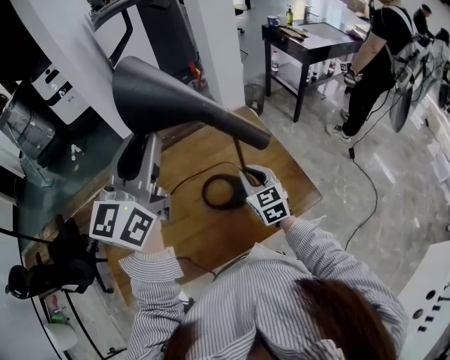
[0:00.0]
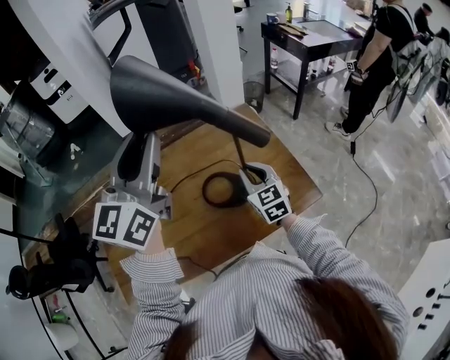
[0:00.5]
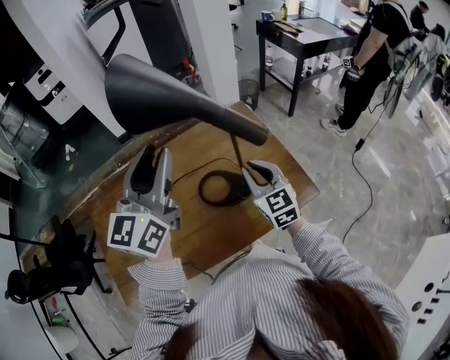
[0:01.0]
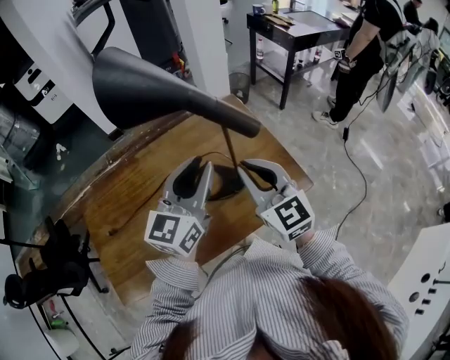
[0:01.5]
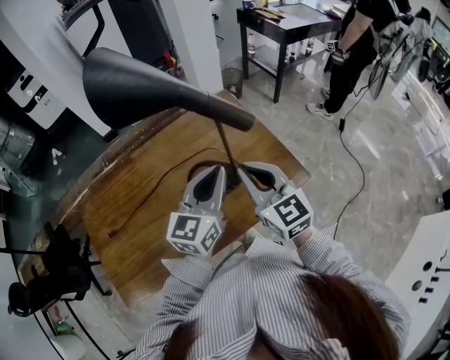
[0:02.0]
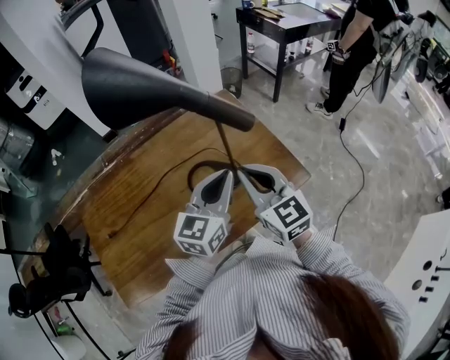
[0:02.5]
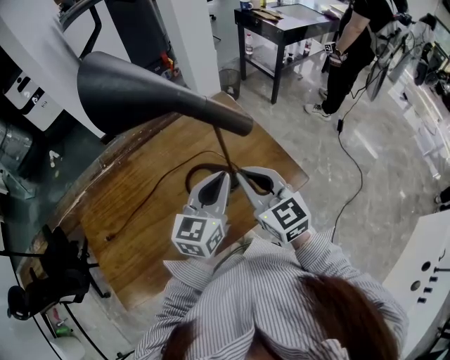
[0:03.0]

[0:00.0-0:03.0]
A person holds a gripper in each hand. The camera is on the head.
0:00.0 to 0:01.5: The right gripper travels upward and backward by about 15 cm; the left gripper shifts roughly 15 cm downward and to the right.
0:01.5 to 0:03.0: The left gripper heads downward and to the right, covering about 10 cm.

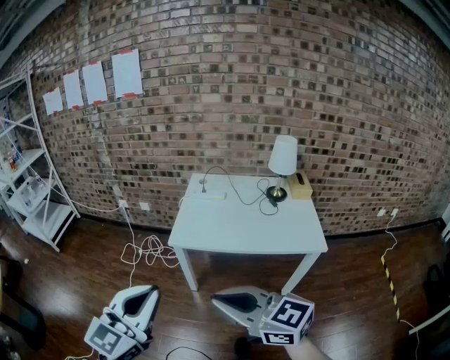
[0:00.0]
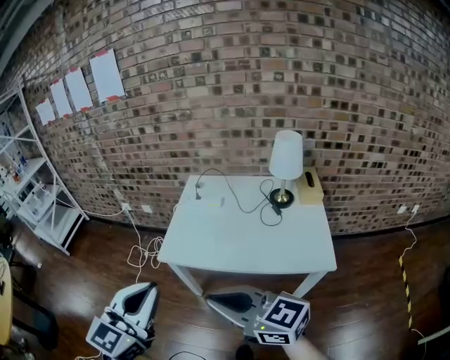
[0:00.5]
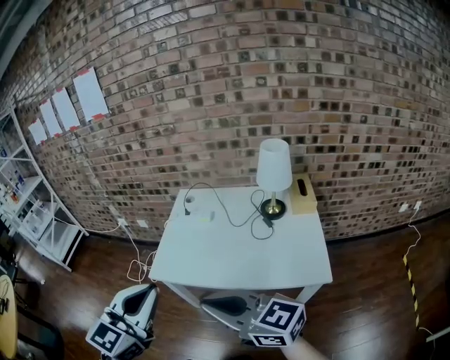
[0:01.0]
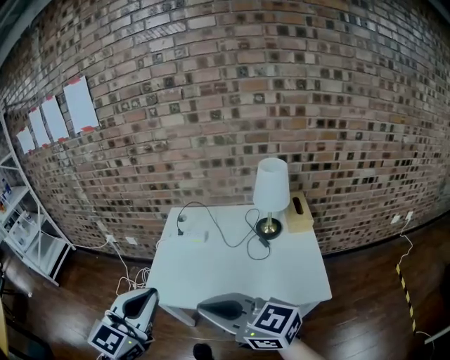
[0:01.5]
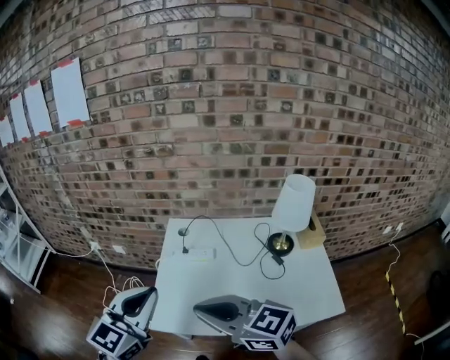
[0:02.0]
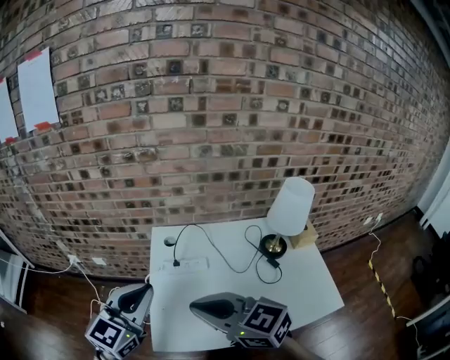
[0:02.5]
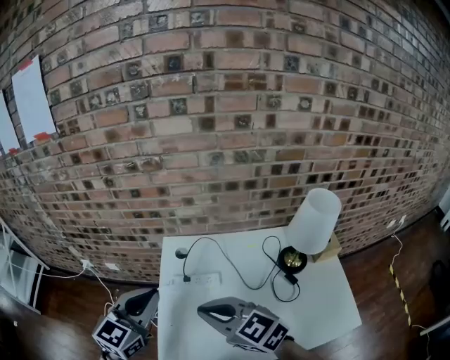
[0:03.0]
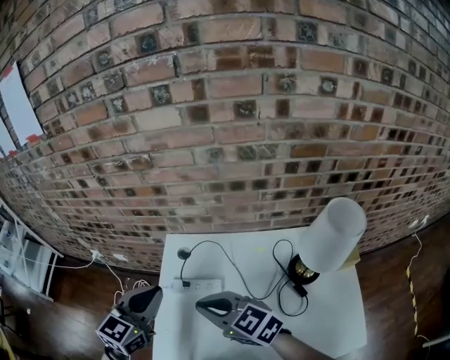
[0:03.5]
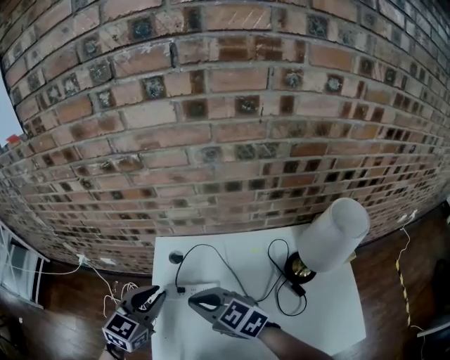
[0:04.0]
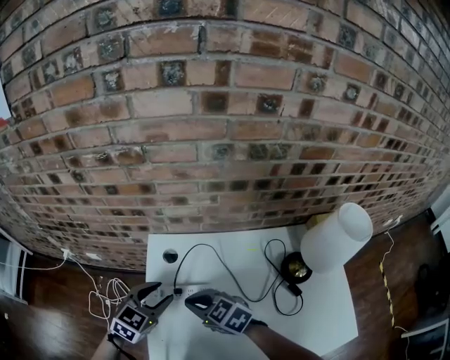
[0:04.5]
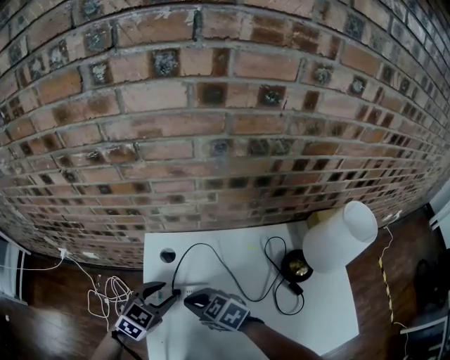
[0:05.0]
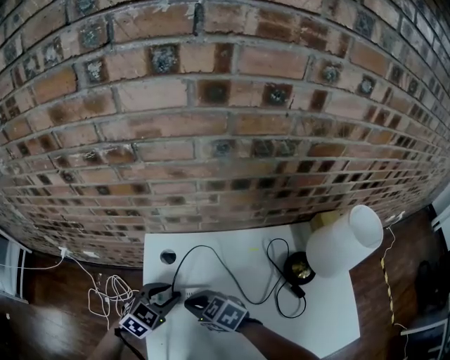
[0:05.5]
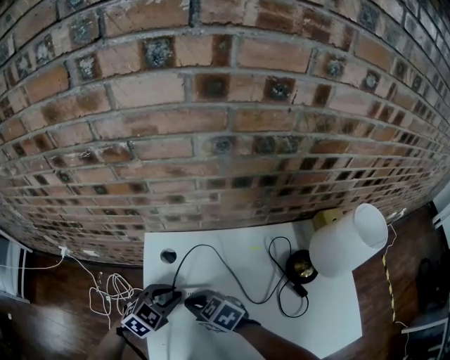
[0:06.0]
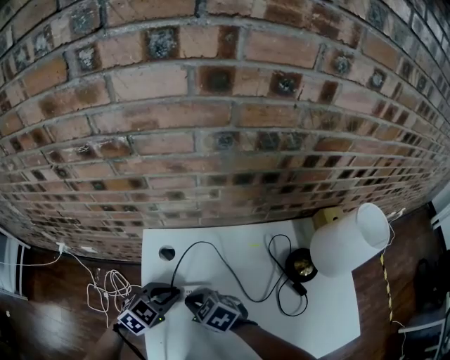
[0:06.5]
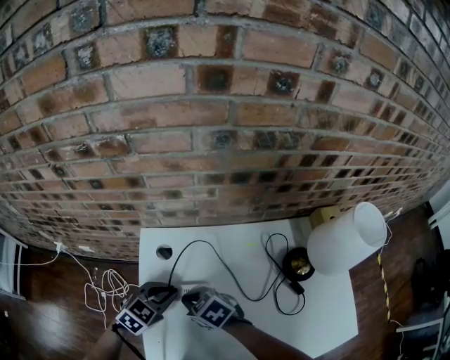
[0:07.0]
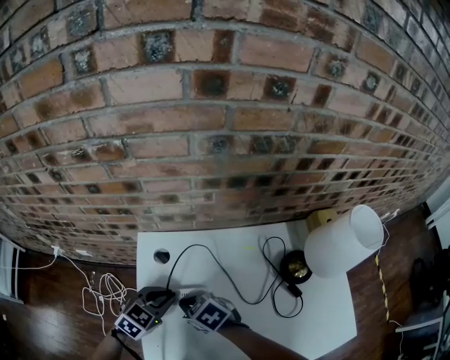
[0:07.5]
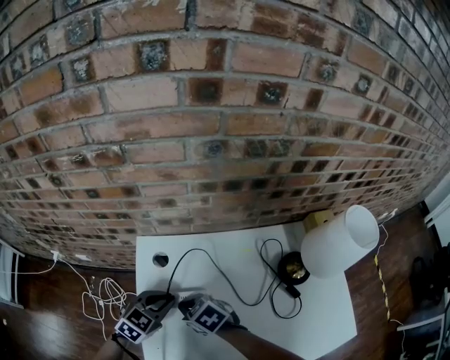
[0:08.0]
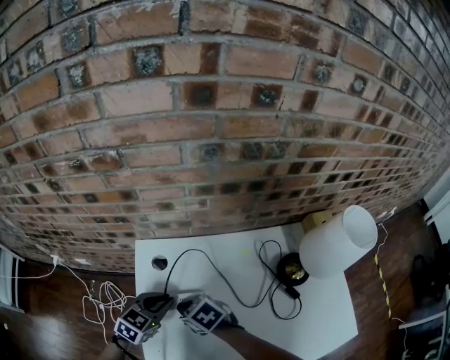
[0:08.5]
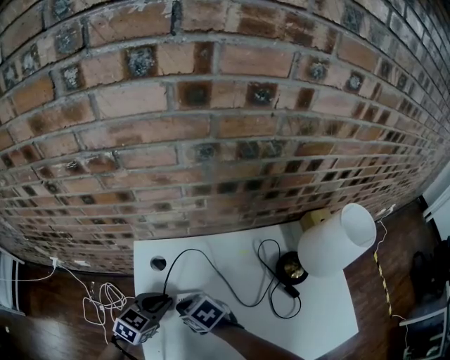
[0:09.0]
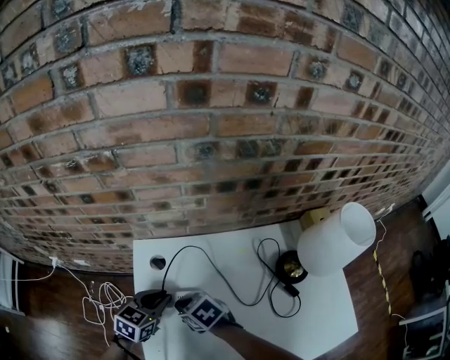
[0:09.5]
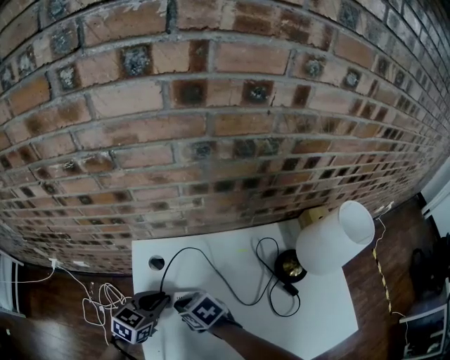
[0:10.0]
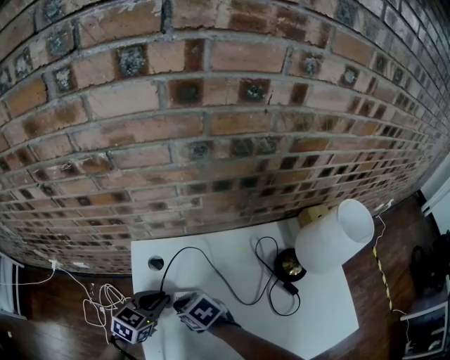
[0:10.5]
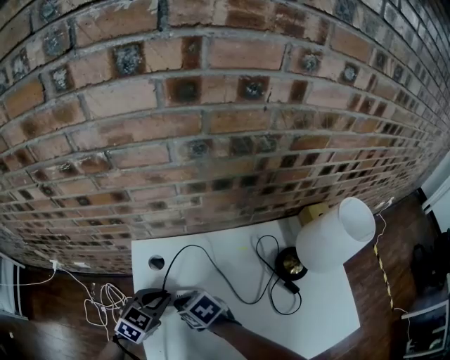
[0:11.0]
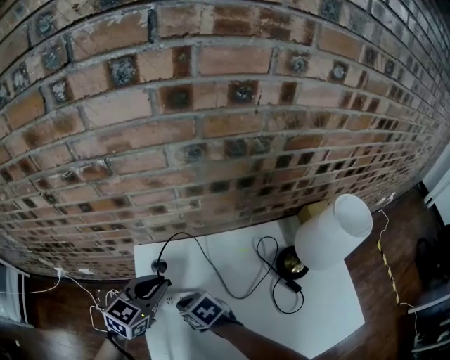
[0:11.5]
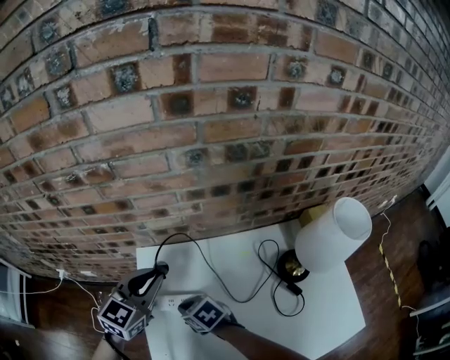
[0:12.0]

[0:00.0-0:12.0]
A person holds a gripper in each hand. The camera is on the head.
0:00.0 to 0:02.0: The right gripper travels forward by some 35 cm. Meanwhile the left gripper heads forward and to the right, covering about 40 cm.
0:02.0 to 0:04.0: Both grippers move forward and downward, roughly 30 cm. The left gripper turns by approximately 20 degrees.
0:04.0 to 0:06.0: Both grippers travel together downward, approximately 15 cm. The right gripper changes its angle by roughly 20 degrees, while the left gripper changes its angle by approximately 30 degrees.
0:06.0 to 0:08.0: There are only small adjustments of the grippers.
0:08.0 to 0:10.0: The grippers make only small movements.
0:10.0 to 0:12.0: The left gripper shifts about 15 cm upward, and rotates roughly 20 degrees.

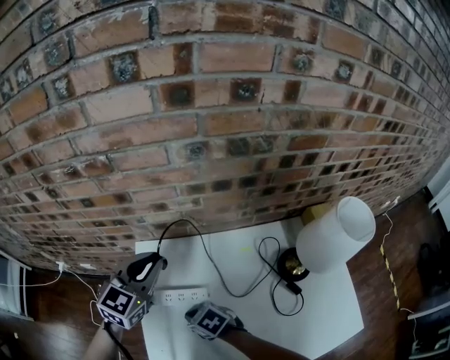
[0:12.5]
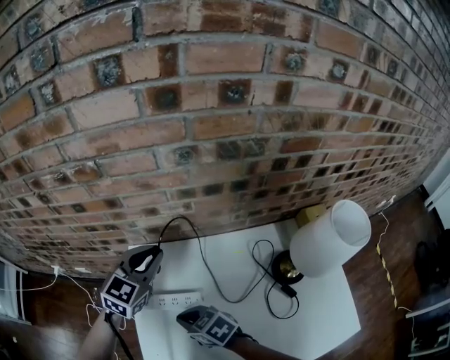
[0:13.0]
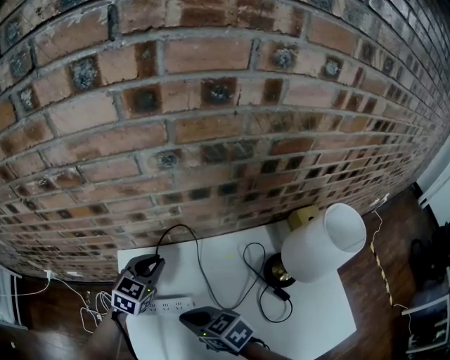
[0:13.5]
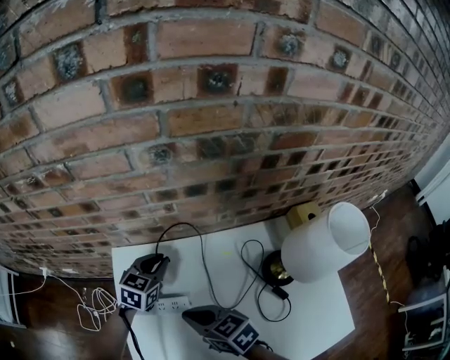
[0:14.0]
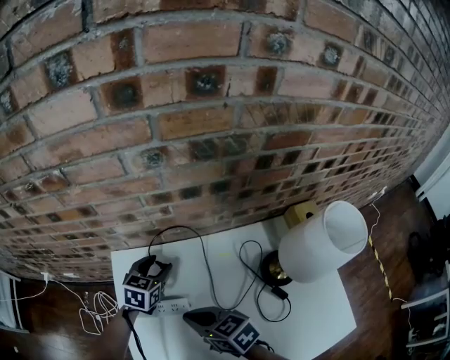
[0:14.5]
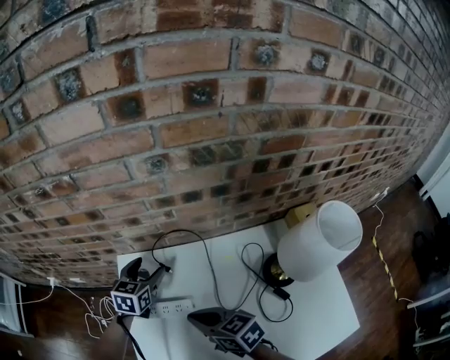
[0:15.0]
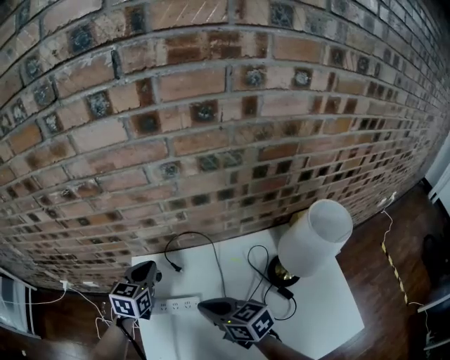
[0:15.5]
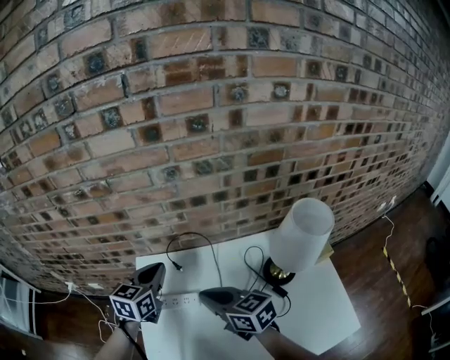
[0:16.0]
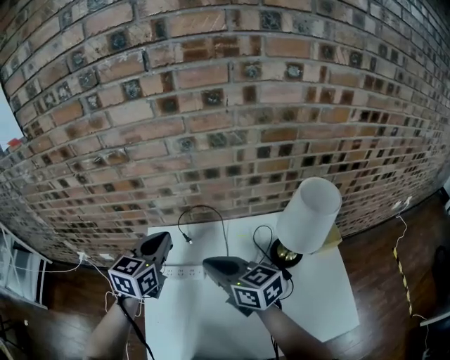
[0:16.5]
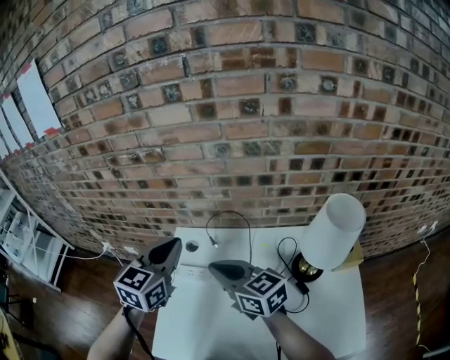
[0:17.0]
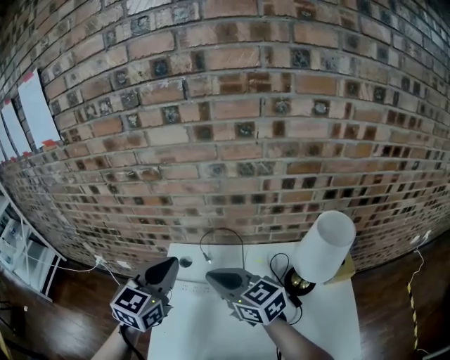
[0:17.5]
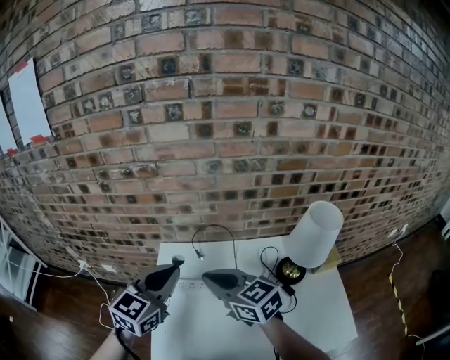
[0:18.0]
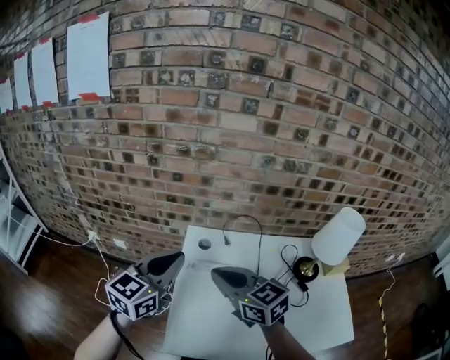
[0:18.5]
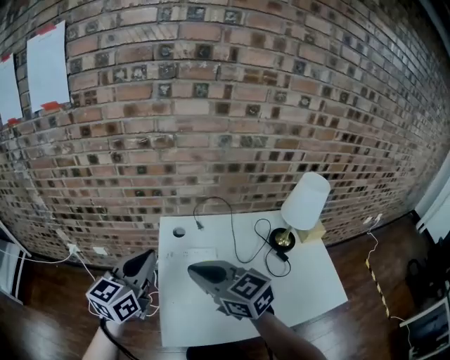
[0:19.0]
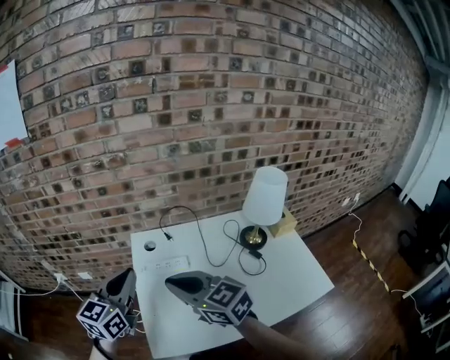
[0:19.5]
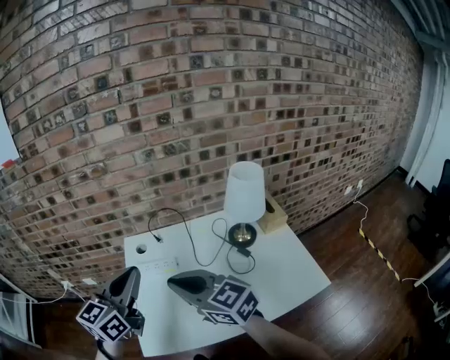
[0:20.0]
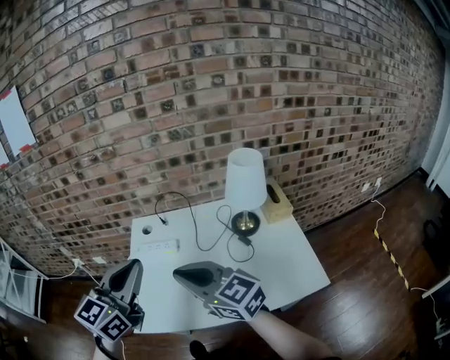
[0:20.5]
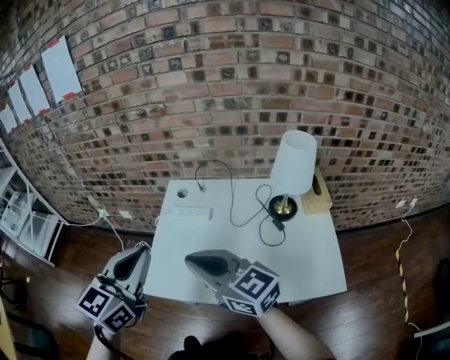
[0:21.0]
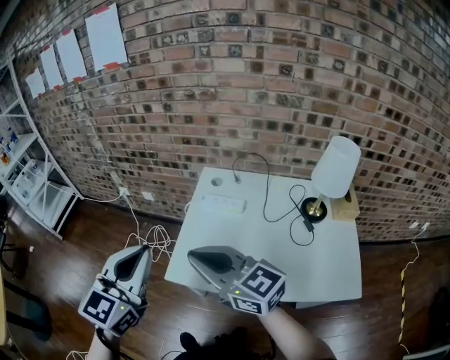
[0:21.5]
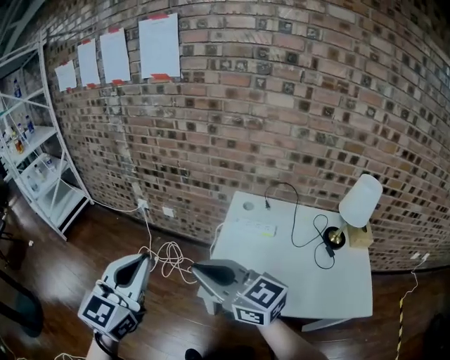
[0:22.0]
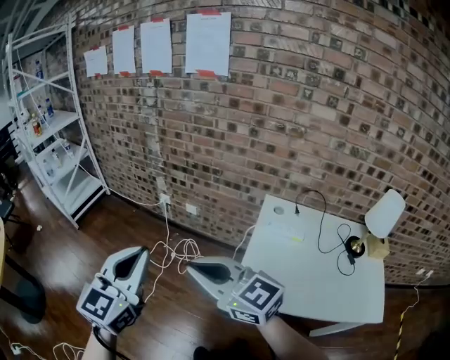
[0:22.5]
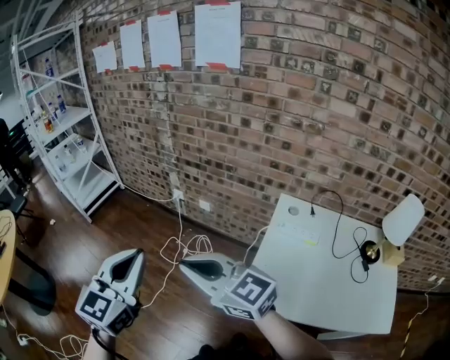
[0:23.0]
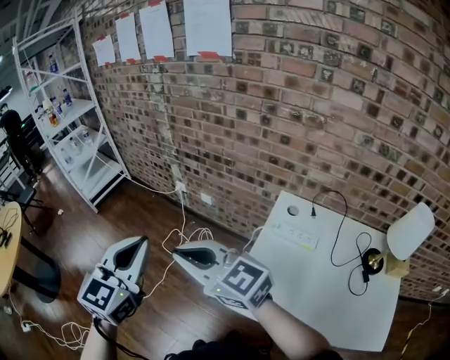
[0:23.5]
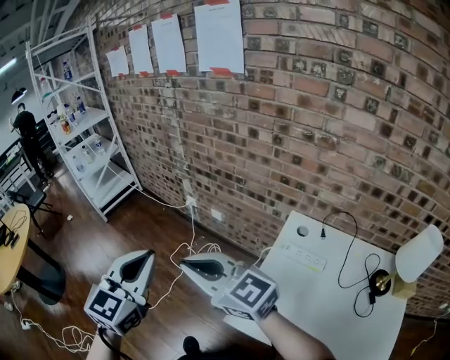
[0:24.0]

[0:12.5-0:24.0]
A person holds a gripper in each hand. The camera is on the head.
0:12.5 to 0:14.5: The right gripper is displaced upward and to the right by approximately 10 cm, and swivels approximately 30 degrees. Meanwhile the left gripper heads downward, covering about 20 cm, changes its angle by roughly 30 degrees, and opens up.
0:14.5 to 0:16.5: The right gripper is displaced upward by roughly 15 cm, and turns by approximately 20 degrees. Meanwhile the left gripper moves upward and backward, some 25 cm, turns by about 20 degrees, and closes its fingers.
0:16.5 to 0:18.5: The left gripper moves to the left and backward, approximately 20 cm. Meanwhile the right gripper is displaced to the left by about 15 cm.
0:18.5 to 0:20.0: The left gripper moves to the right and backward, approximately 15 cm. Meanwhile the right gripper moves backward and to the right, approximately 15 cm.
0:20.0 to 0:22.0: The left gripper shifts by approximately 35 cm, and changes its angle by about 30 degrees, while the right gripper changes place by approximately 30 cm, and rotates about 30 degrees.
0:22.0 to 0:24.0: The right gripper is displaced forward and to the left by roughly 15 cm, and swivels approximately 20 degrees; the left gripper shifts some 10 cm forward, and moves about 15 cm to the left and comes back.
